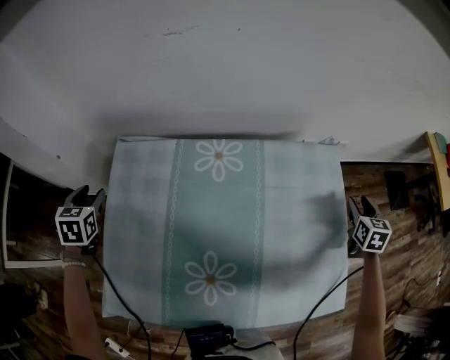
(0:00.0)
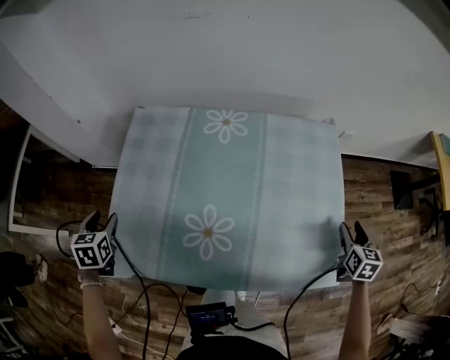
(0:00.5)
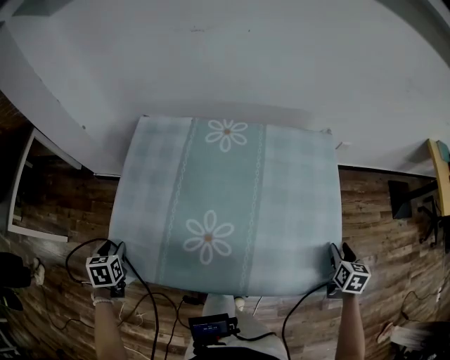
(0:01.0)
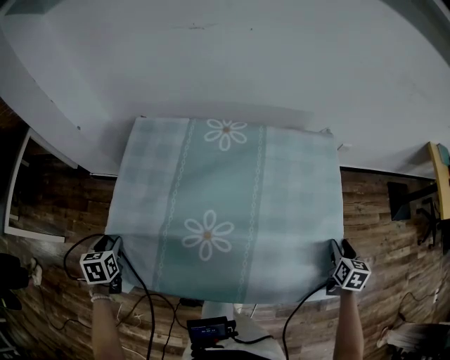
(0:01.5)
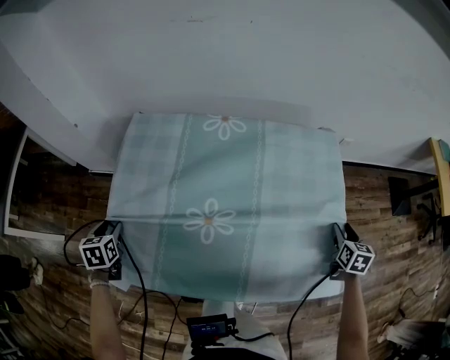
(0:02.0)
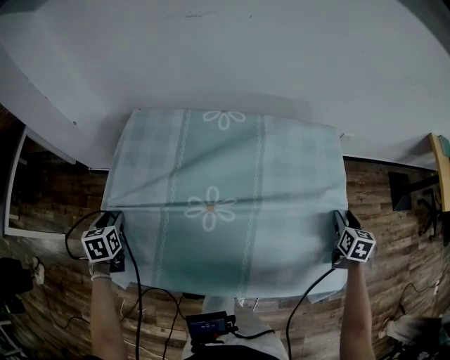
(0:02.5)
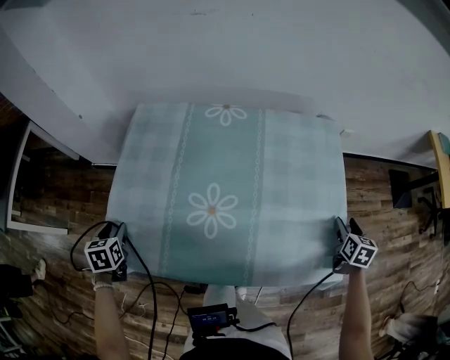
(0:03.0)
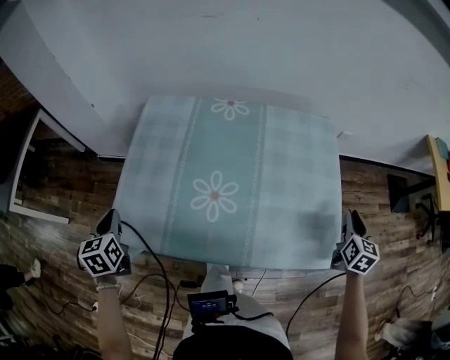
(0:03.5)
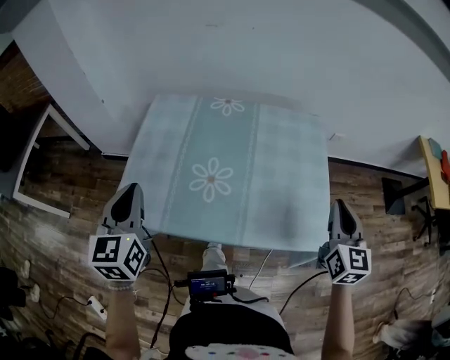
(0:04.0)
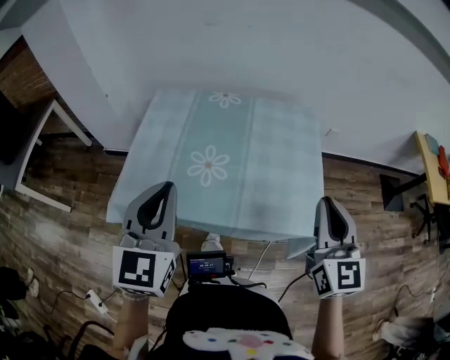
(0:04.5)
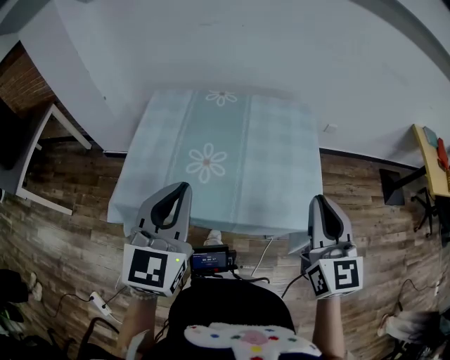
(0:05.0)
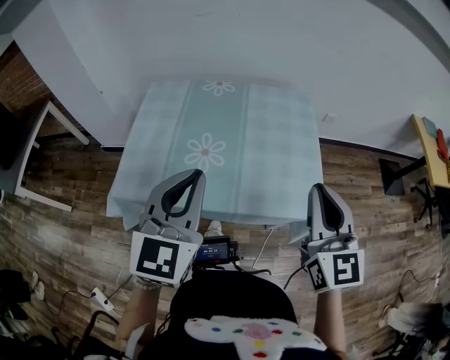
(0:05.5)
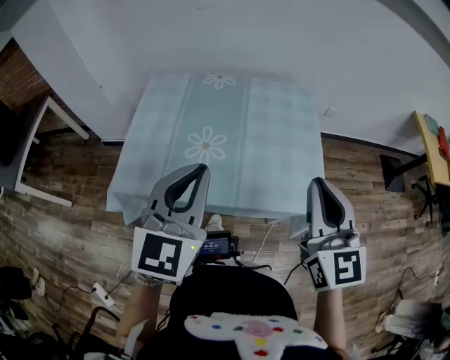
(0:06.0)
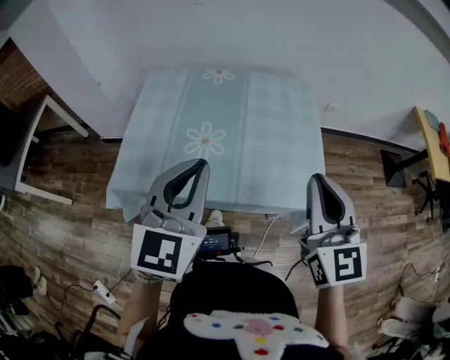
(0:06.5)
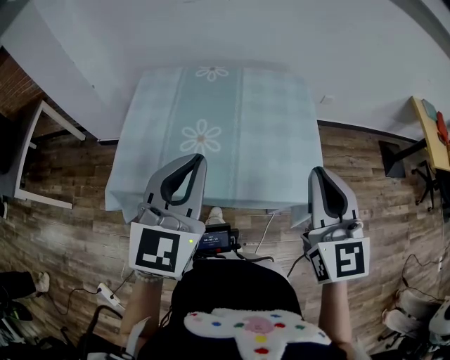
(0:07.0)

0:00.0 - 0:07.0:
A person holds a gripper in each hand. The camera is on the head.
0:00.0 - 0:02.0: The left gripper is displaced backward and downward by some 25 cm; the right gripper moves backward and downward, some 15 cm.
0:02.0 - 0:03.5: The grippers both shift upward and backward by roughly 10 cm. The right gripper closes up; the left gripper closes.
0:03.5 - 0:05.0: The left gripper goes about 35 cm to the right and upward, and turns by about 40 degrees, while the right gripper shifts roughly 30 cm upward, to the left and backward, and rotates about 30 degrees.
0:05.0 - 0:07.0: The grippers move only a little.

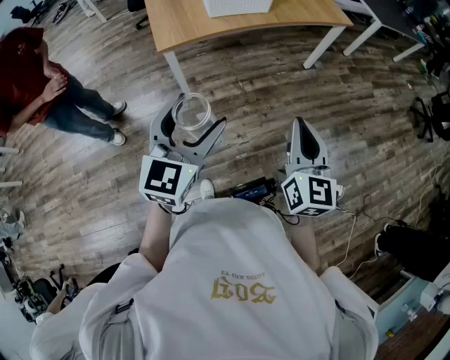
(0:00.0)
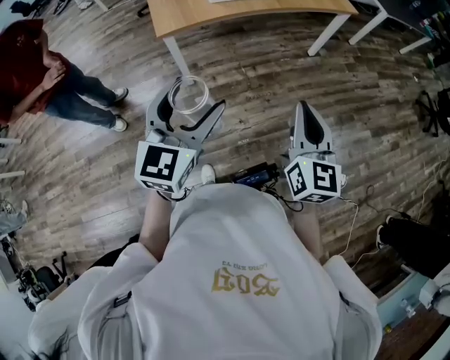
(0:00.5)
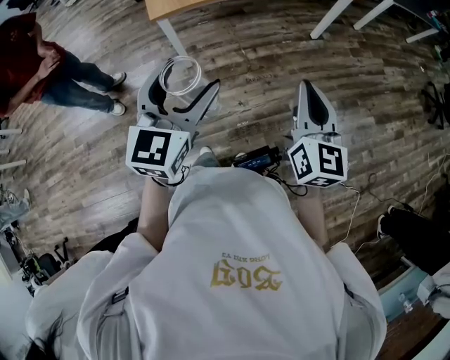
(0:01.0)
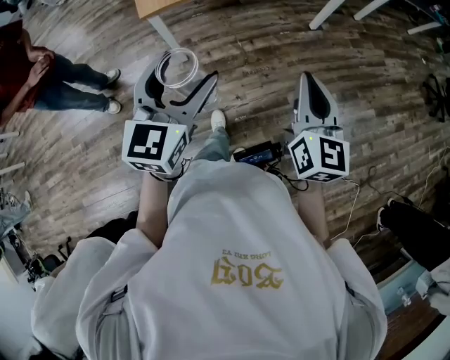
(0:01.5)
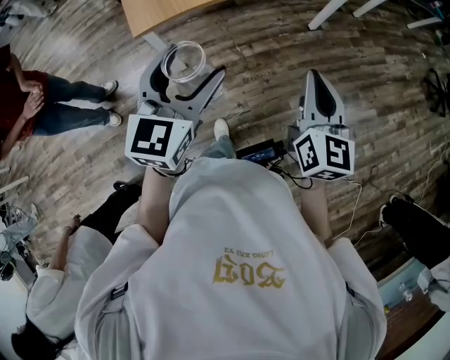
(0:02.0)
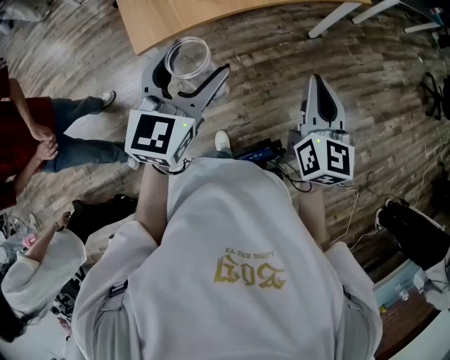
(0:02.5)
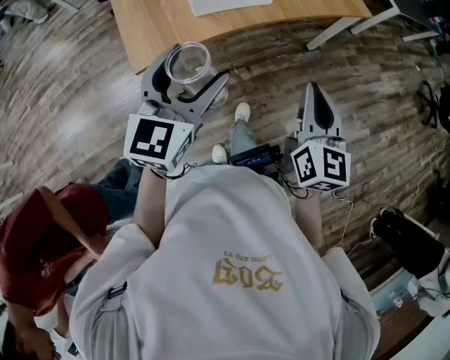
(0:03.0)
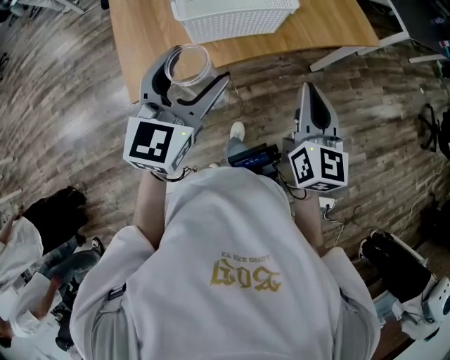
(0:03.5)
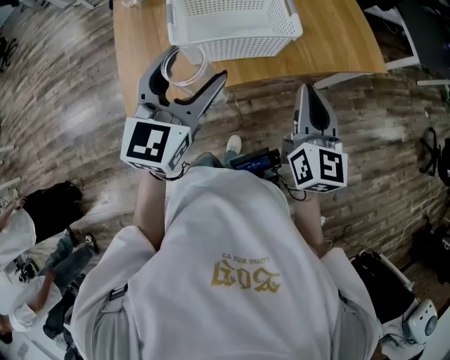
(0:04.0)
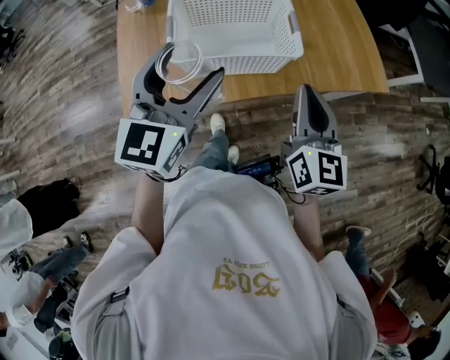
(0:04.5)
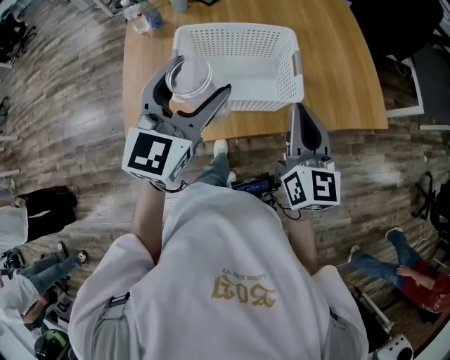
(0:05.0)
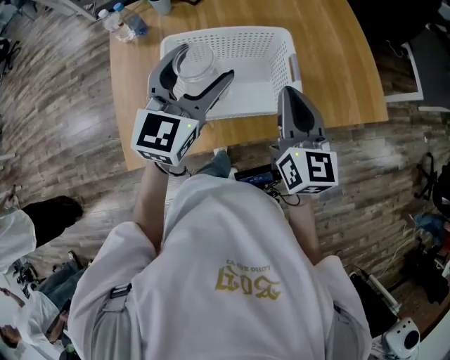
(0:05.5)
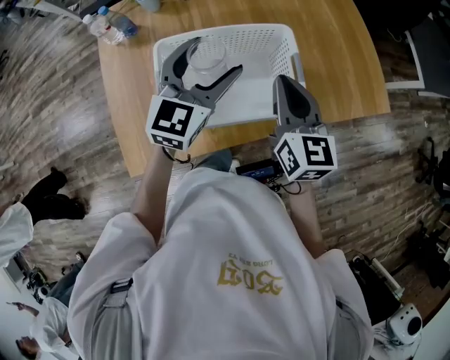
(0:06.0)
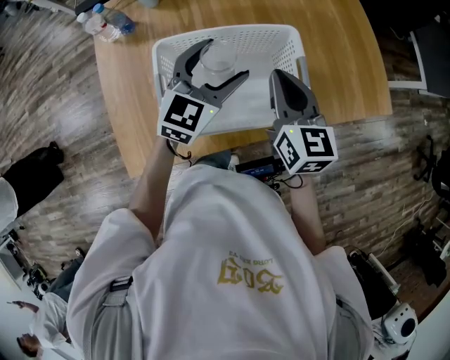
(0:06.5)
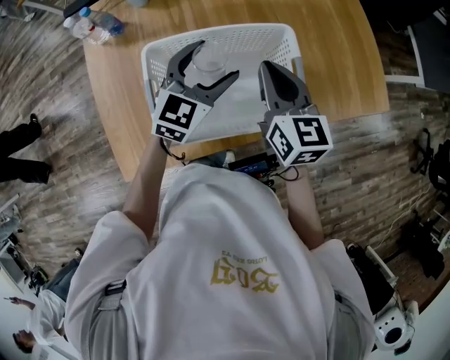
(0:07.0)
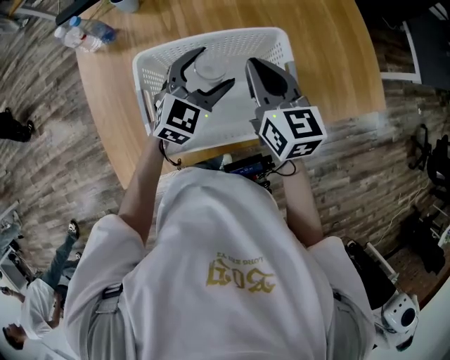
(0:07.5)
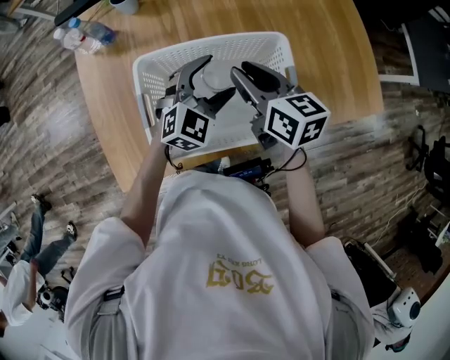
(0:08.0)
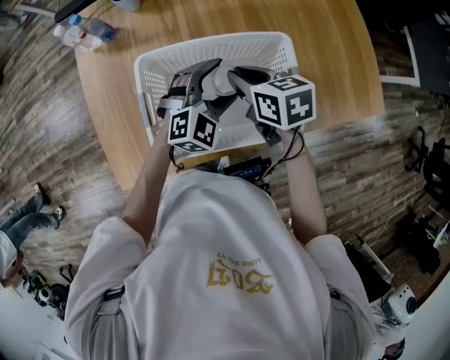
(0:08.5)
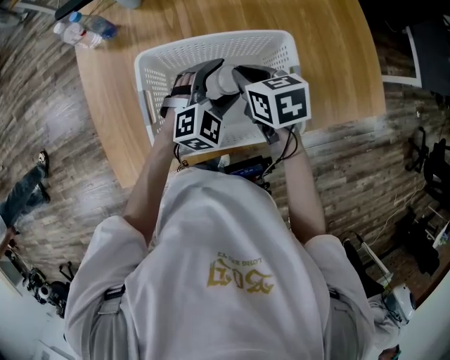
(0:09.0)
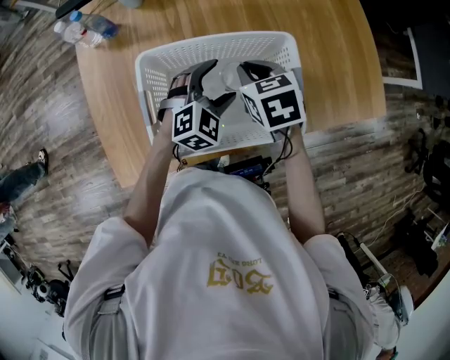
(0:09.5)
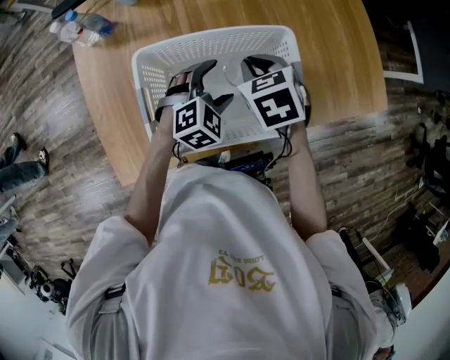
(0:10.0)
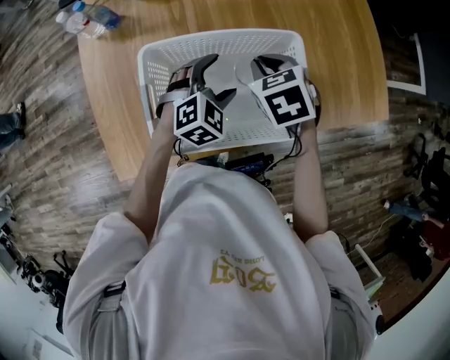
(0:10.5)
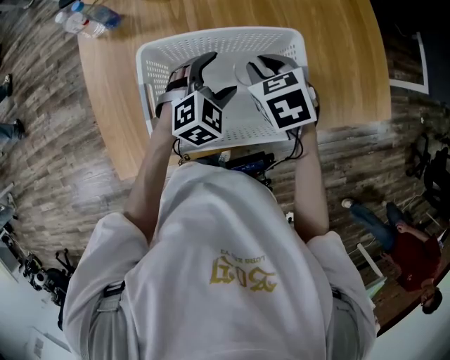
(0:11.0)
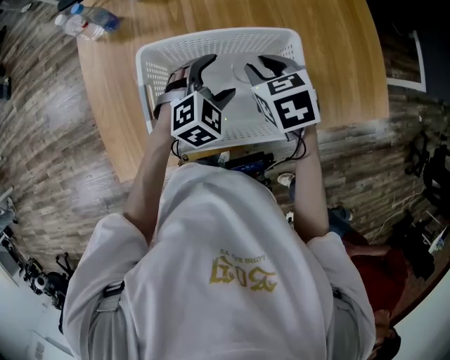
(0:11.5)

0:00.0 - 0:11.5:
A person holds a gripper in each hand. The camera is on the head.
0:00.0 - 0:02.0: The grippers both shift forward by approximately 15 cm.
0:02.0 - 0:04.0: Both grippers travel together forward, approximately 30 cm.
0:04.0 - 0:06.0: The two grippers go approximately 25 cm forward.
0:06.0 - 0:07.5: The right gripper shifts about 5 cm forward. Meanwhile the left gripper is displaced downward by about 10 cm.
0:07.5 - 0:09.5: The grippers both shift downward by approximately 5 cm. The right gripper points its fingers some 30 degrees further downward.
0:09.5 - 0:11.5: The grippers stay close to where they were, moving slightly.

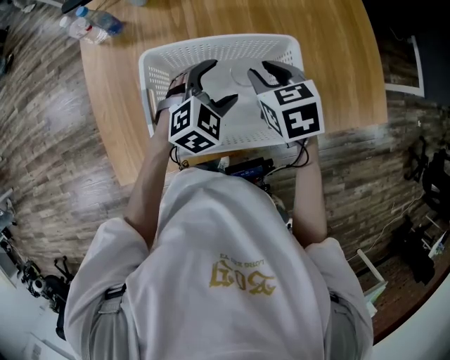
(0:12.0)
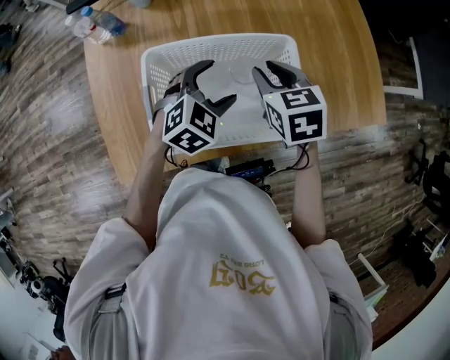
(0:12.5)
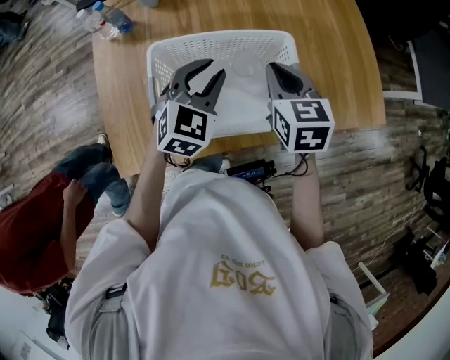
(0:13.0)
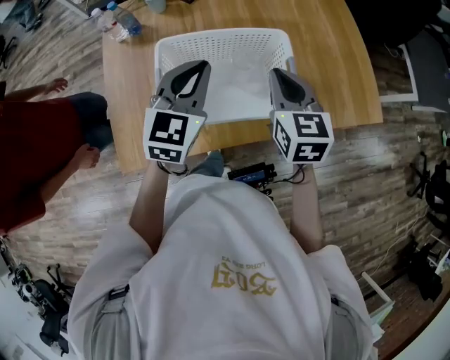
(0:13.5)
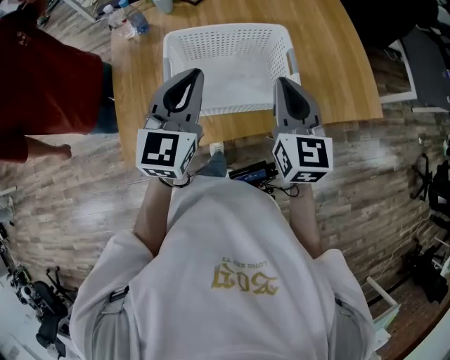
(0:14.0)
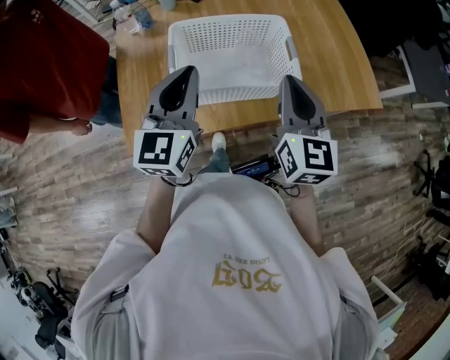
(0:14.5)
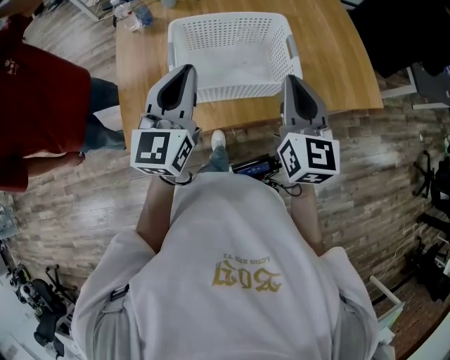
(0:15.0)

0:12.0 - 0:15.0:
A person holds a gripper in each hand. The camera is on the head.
0:12.0 - 0:13.5: The right gripper goes about 10 cm upward and backward, turns by approximately 30 degrees, and closes its fingers. The left gripper goes roughly 15 cm upward and to the left, turns by roughly 40 degrees, and closes up.
0:13.5 - 0:15.0: The left gripper moves backward, roughly 10 cm; the right gripper goes about 15 cm backward and upward.

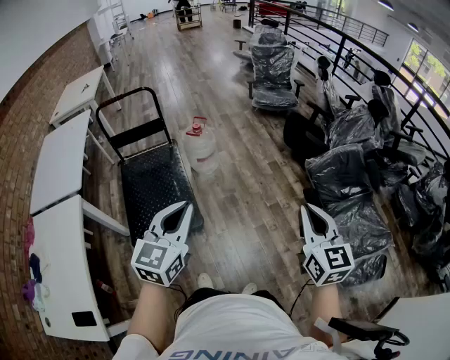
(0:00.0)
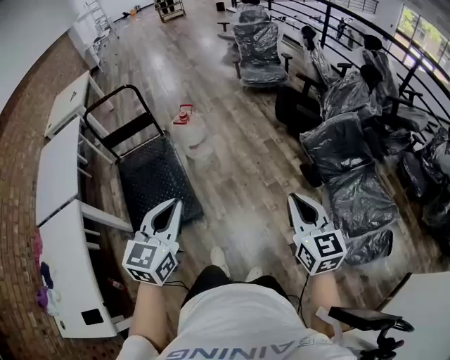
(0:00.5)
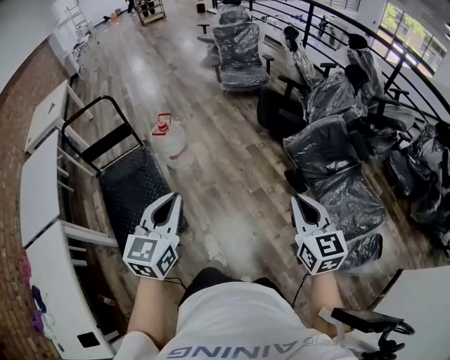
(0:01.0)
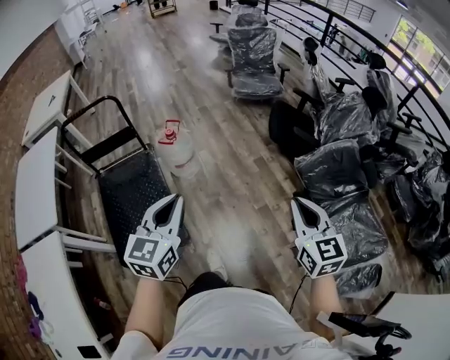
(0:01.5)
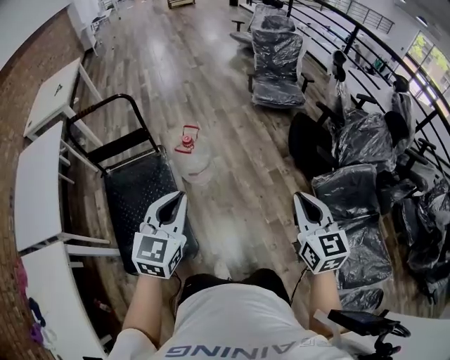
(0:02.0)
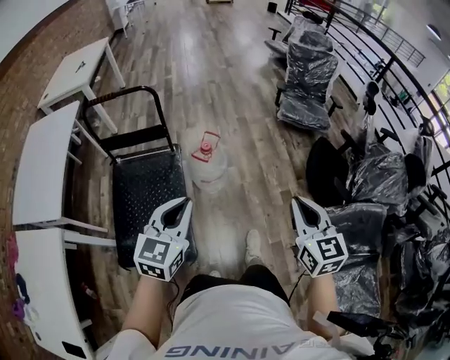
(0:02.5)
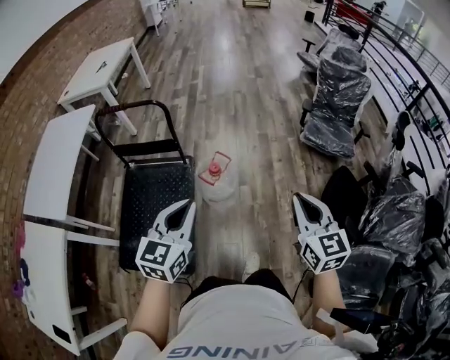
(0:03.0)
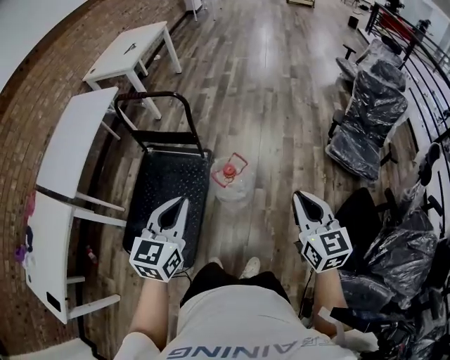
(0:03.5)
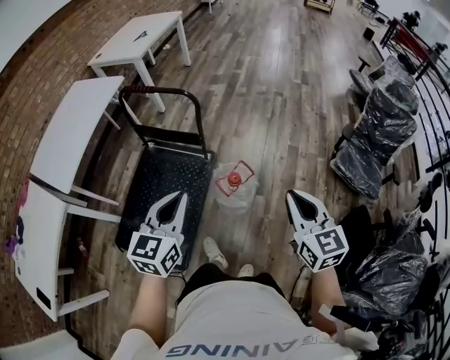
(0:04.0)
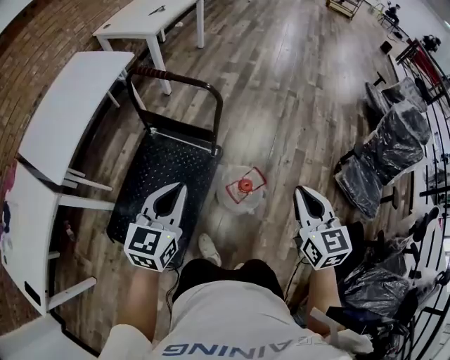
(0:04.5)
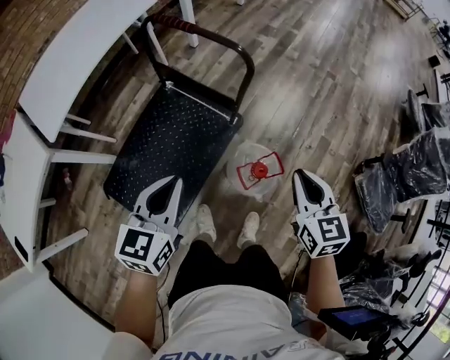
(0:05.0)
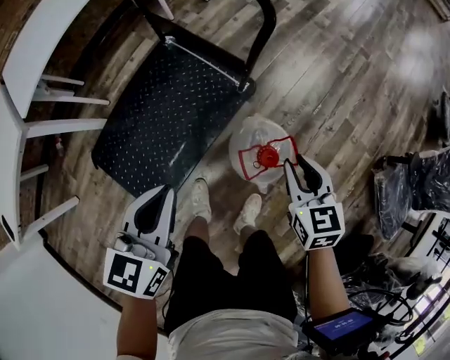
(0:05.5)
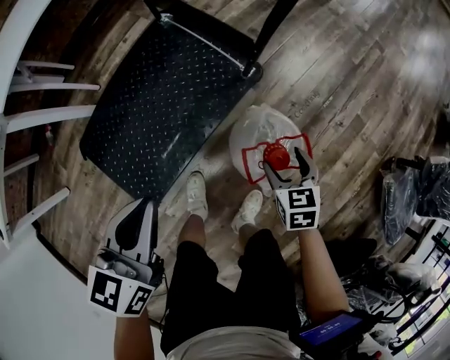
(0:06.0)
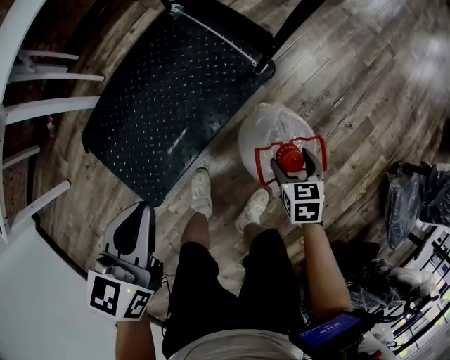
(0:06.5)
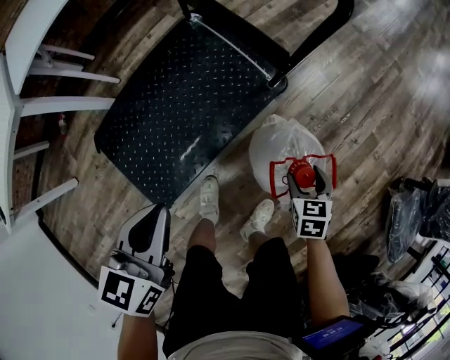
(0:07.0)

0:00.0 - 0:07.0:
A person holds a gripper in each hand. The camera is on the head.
0:00.0 - 0:02.0: The two grippers go roughly 35 cm forward.
0:02.0 - 0:03.5: The left gripper ends up some 20 cm from where it was, and swivels roughly 30 degrees, while the right gripper shifts by approximately 40 cm, and changes its angle by roughly 40 degrees.
0:03.5 - 0:05.0: Both grippers move forward, to the left and downward, some 30 cm. The right gripper swivels some 20 degrees. The left gripper swivels approximately 20 degrees.
0:05.0 - 0:07.0: The left gripper shifts roughly 15 cm downward, and turns by approximately 20 degrees, while the right gripper moves downward, some 35 cm, swivels roughly 30 degrees, and opens its fingers.
